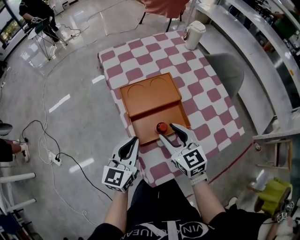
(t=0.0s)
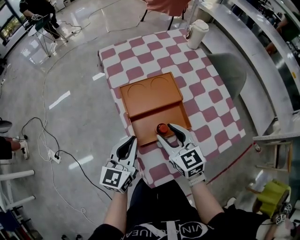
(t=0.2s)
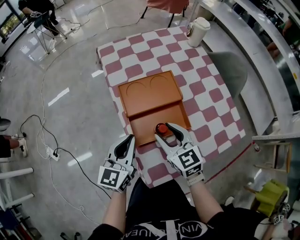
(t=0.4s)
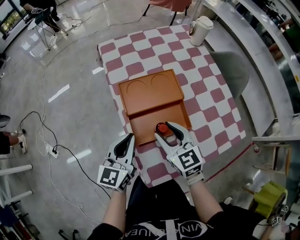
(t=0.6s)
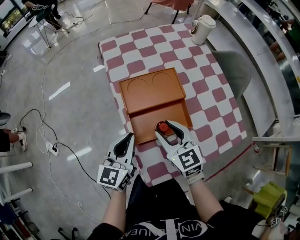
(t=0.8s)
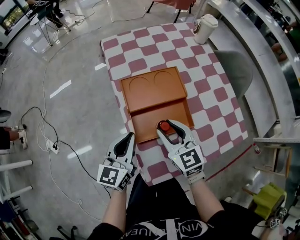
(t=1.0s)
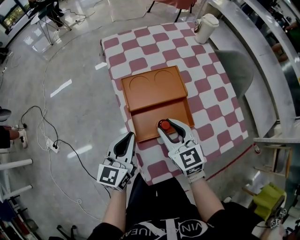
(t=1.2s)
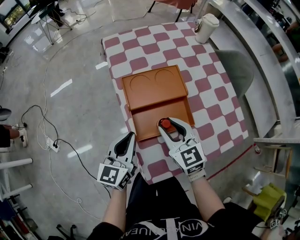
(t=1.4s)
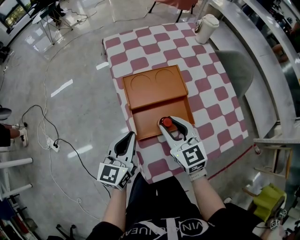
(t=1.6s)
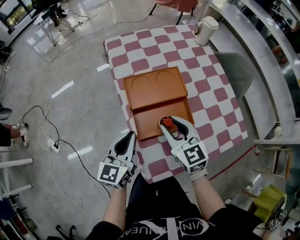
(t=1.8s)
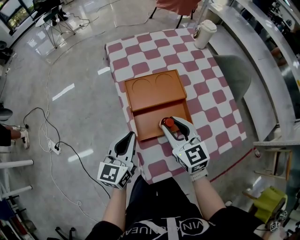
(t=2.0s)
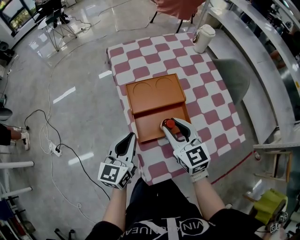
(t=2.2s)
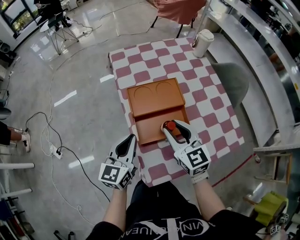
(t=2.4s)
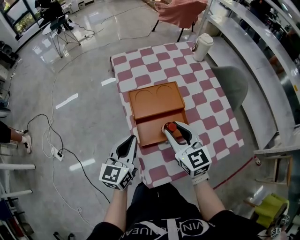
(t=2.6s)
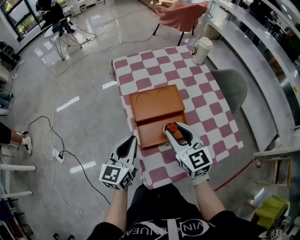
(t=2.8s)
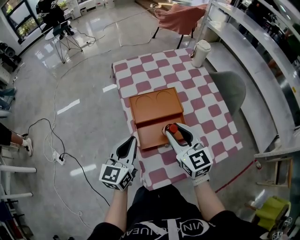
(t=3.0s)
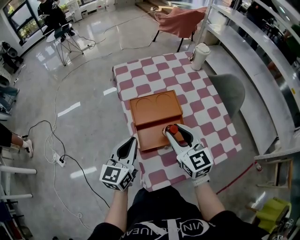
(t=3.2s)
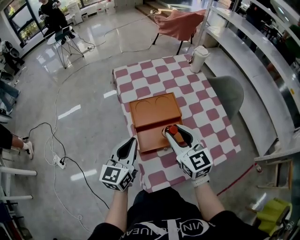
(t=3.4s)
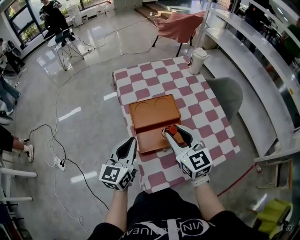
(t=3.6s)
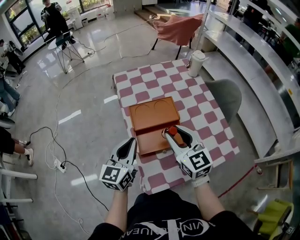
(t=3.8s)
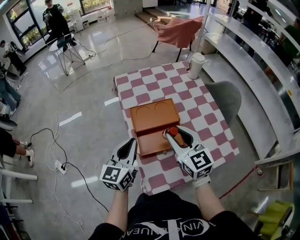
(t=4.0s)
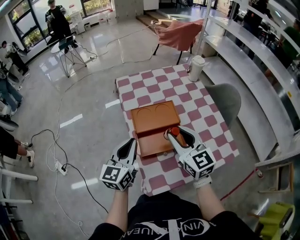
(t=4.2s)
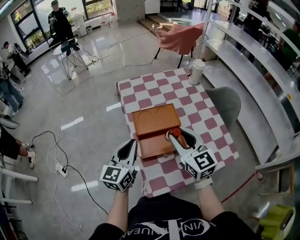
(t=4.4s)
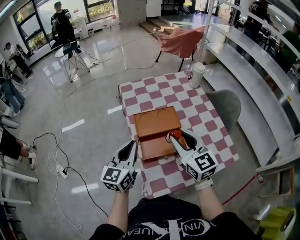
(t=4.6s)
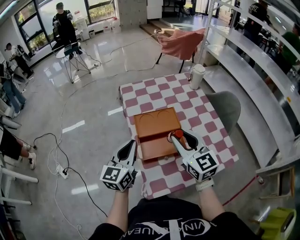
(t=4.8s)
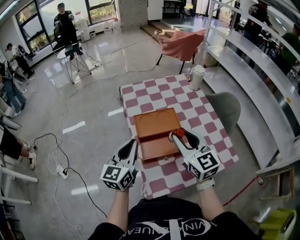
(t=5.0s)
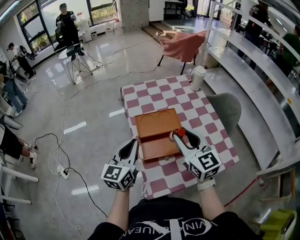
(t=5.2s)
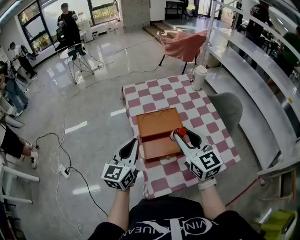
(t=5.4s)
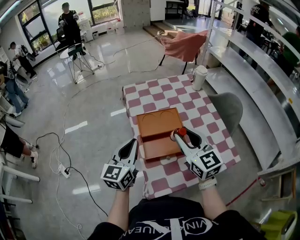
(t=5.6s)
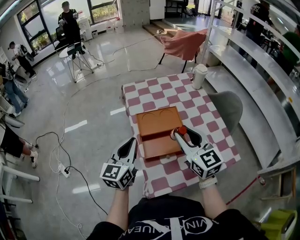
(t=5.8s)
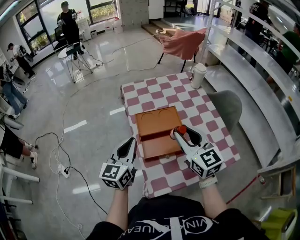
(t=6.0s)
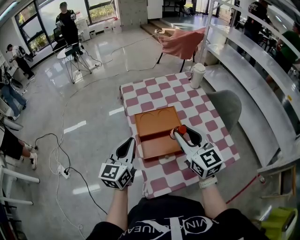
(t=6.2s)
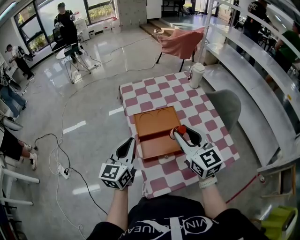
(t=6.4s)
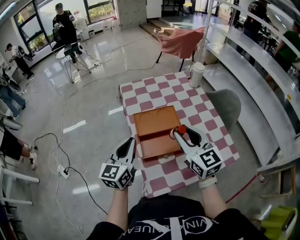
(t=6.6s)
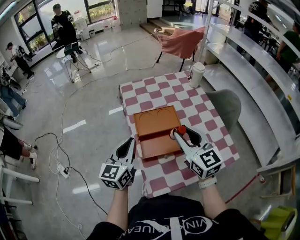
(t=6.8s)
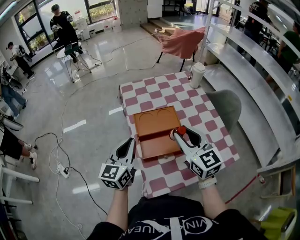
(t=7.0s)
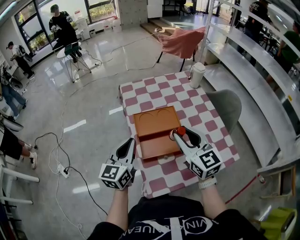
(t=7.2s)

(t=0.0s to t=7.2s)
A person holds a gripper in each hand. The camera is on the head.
t=0.0s - t=1.4s: The grippers make only small movements.
t=1.4s - t=2.8s: The right gripper heads upward, covering some 10 cm.
t=2.8s - t=4.4s: Both grippers travel together upward, some 5 cm.
t=4.4s - t=5.8s: There are only small adjustments of the grippers.
t=5.8s - t=7.2s: Neither gripper changes place.

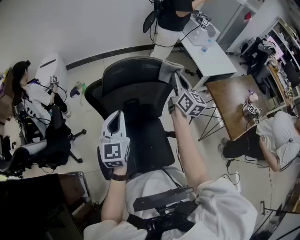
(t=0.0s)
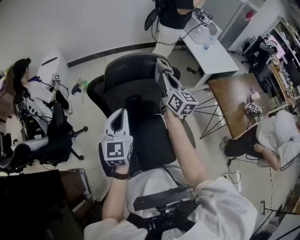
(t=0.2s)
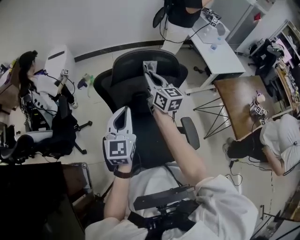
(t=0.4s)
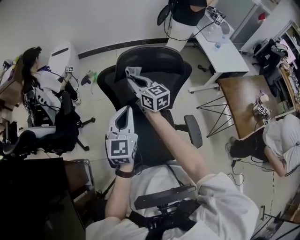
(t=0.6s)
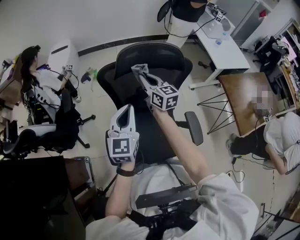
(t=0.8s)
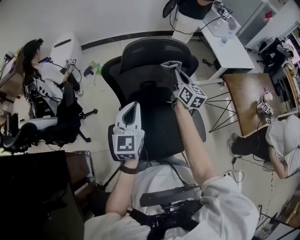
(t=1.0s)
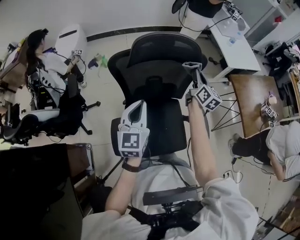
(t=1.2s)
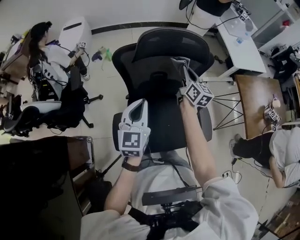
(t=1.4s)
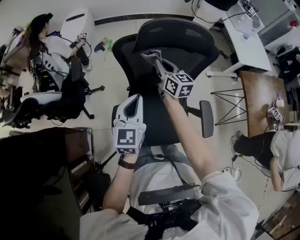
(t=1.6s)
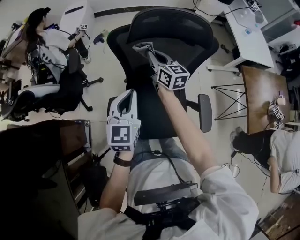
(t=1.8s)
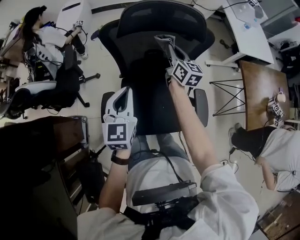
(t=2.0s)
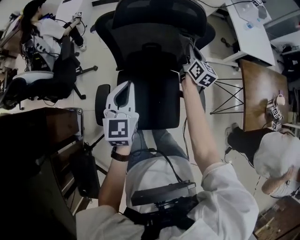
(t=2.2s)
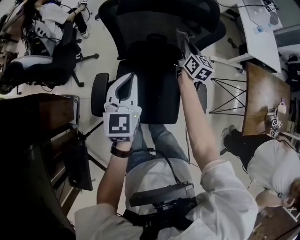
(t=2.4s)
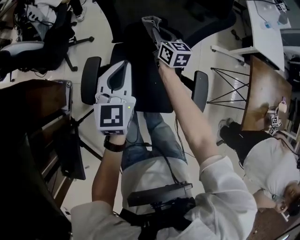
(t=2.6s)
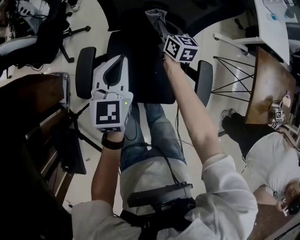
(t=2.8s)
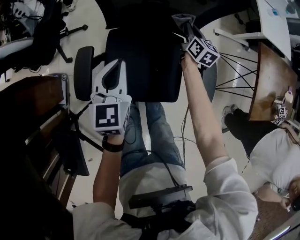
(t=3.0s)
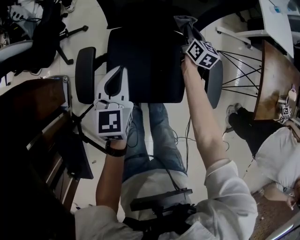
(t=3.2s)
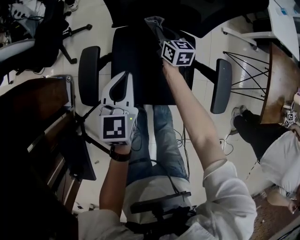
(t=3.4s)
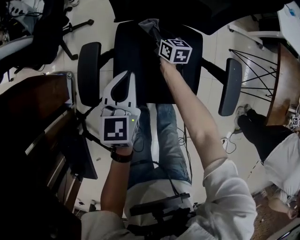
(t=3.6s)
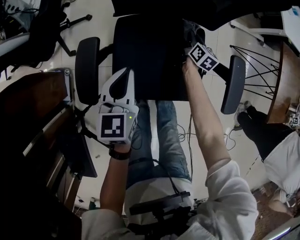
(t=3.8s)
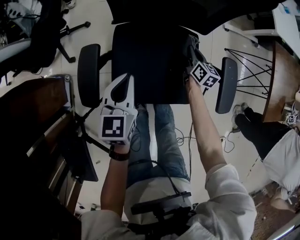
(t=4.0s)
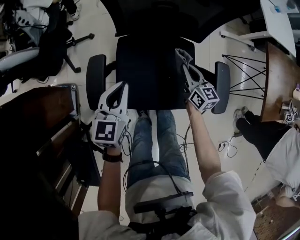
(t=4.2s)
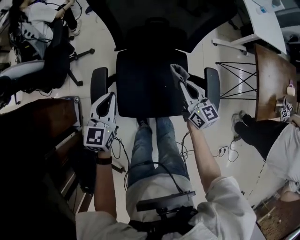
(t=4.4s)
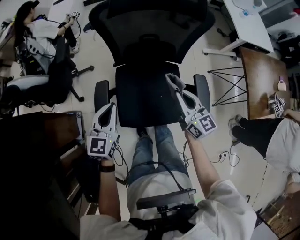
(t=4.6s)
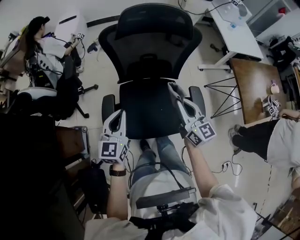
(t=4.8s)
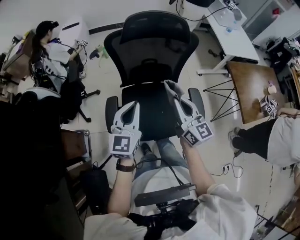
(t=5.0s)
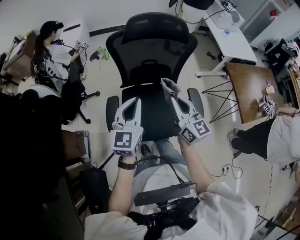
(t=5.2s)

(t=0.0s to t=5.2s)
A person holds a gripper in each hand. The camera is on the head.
t=0.0s - t=1.8s: The left gripper travels downward, backward and to the left by approximately 15 cm, while the right gripper swings left and right, some 30 cm each way, with 2 reversals, and changes its angle by approximately 30 degrees.
t=1.8s - t=3.4s: The grippers both shift downward by about 40 cm.
t=3.4s - t=5.2s: The left gripper travels upward by some 40 cm, and changes its angle by about 30 degrees; the right gripper heads upward and backward, covering roughly 70 cm, and swivels approximately 30 degrees.

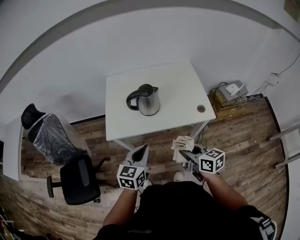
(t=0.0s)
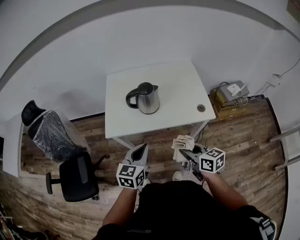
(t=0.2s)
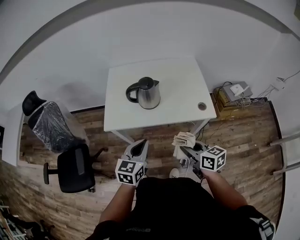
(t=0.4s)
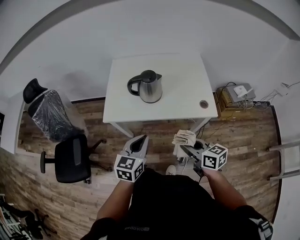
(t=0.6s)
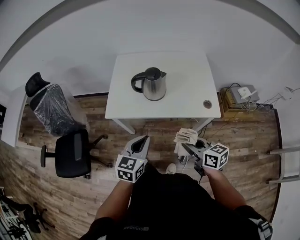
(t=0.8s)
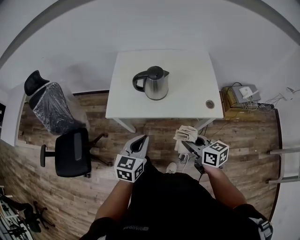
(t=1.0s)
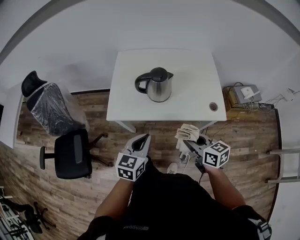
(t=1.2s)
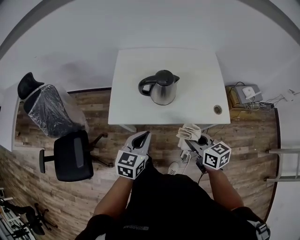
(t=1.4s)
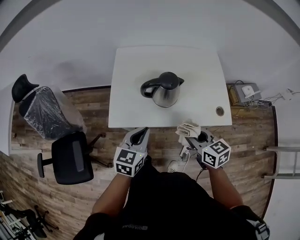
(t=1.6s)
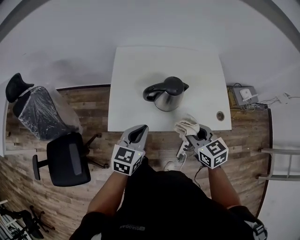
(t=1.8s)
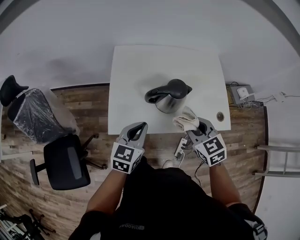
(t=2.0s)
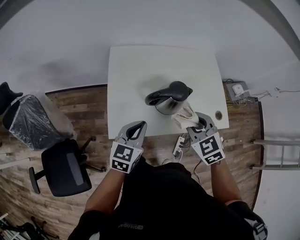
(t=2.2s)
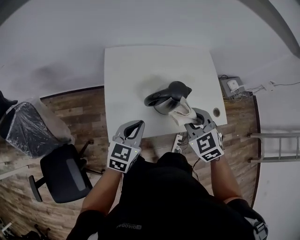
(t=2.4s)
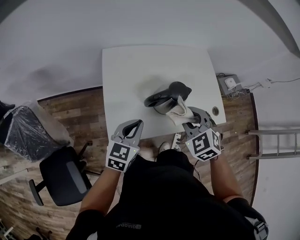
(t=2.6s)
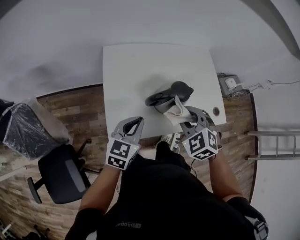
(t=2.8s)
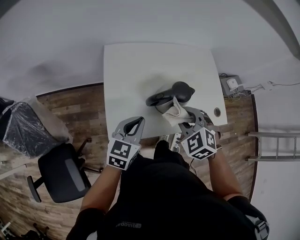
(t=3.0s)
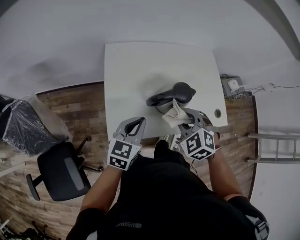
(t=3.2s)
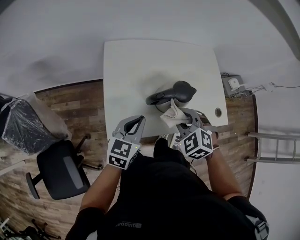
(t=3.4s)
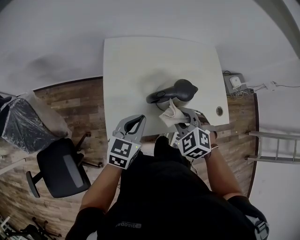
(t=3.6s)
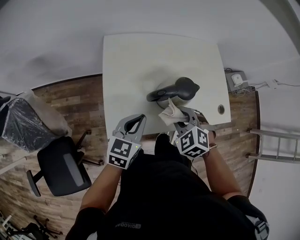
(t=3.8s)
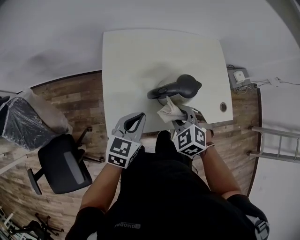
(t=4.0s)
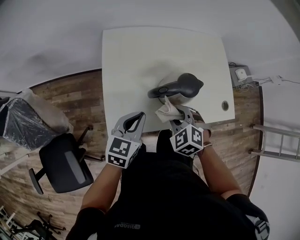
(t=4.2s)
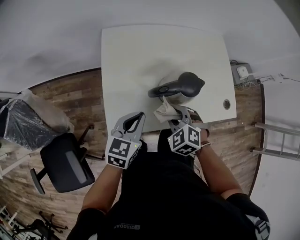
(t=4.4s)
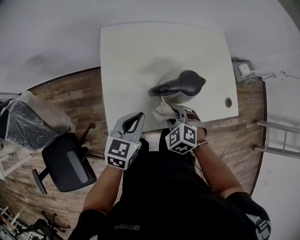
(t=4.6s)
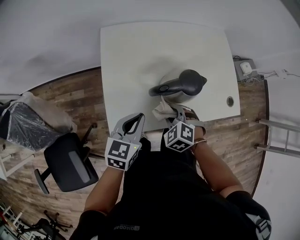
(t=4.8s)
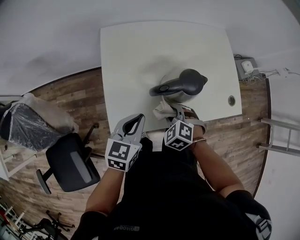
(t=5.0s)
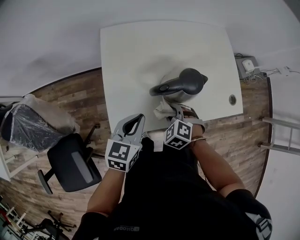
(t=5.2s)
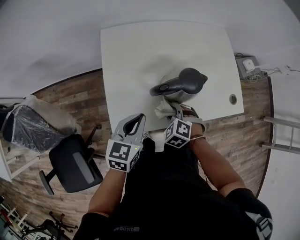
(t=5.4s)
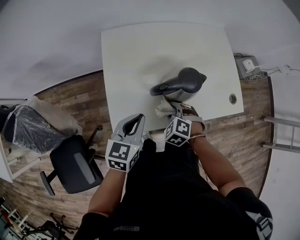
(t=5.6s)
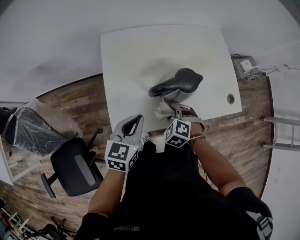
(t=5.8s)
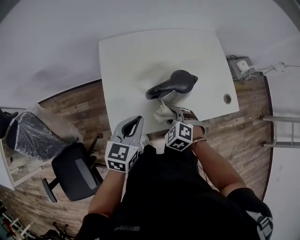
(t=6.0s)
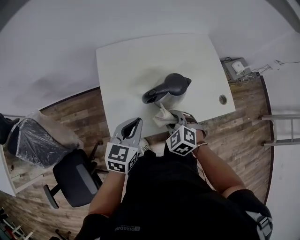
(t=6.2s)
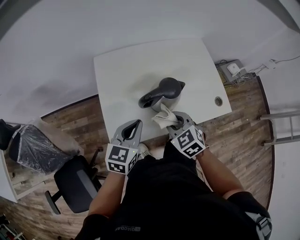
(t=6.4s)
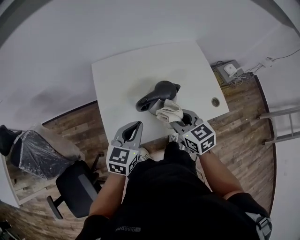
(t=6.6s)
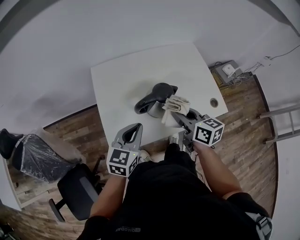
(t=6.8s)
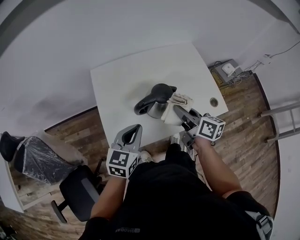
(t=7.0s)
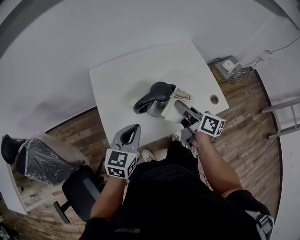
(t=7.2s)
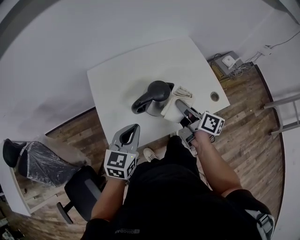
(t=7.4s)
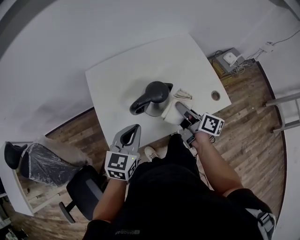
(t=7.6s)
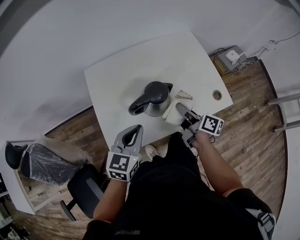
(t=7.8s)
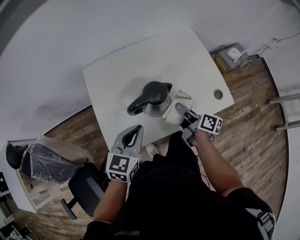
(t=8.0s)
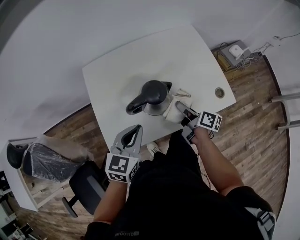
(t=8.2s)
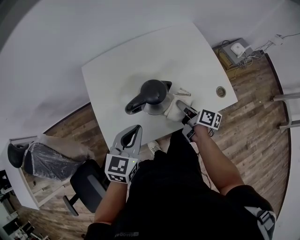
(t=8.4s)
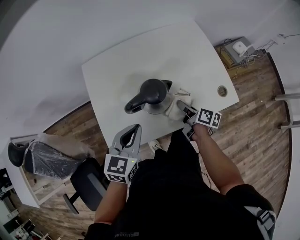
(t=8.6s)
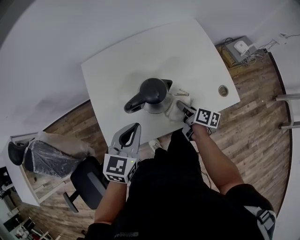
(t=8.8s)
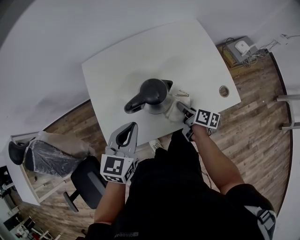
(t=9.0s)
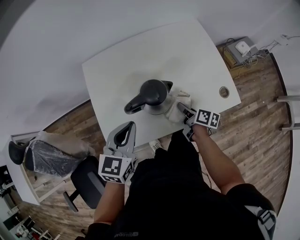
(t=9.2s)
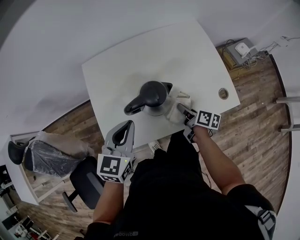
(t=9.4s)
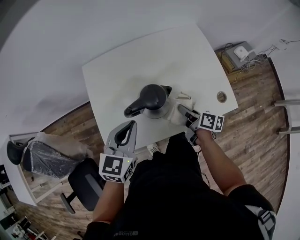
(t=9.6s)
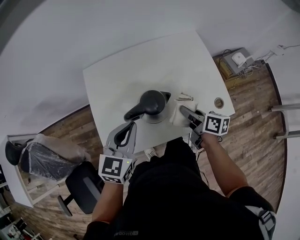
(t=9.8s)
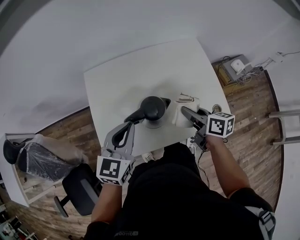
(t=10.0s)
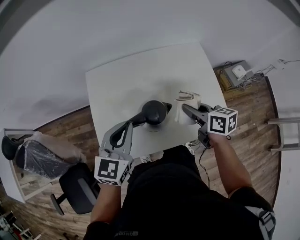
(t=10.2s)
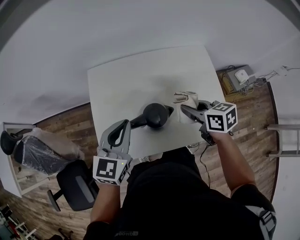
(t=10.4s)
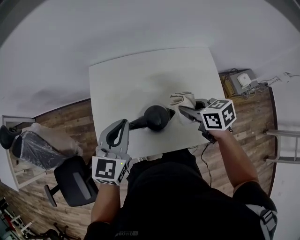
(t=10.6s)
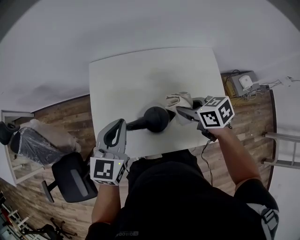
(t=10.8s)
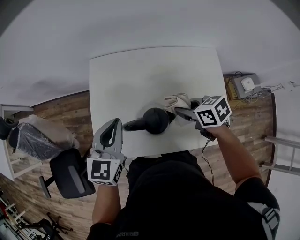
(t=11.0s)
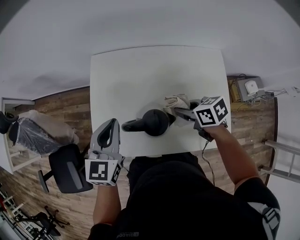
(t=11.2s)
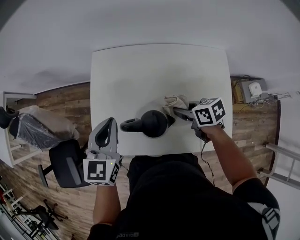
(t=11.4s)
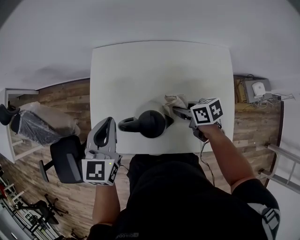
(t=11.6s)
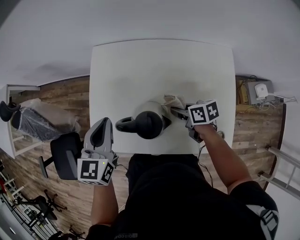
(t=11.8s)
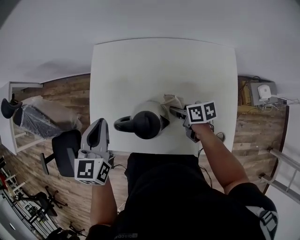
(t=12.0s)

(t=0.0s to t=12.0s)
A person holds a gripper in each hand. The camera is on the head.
t=0.0s - t=1.6s: Both grippers travel together forward, approximately 15 cm.
t=1.6s - t=3.0s: The left gripper shifts some 15 cm forward and to the left. The right gripper shifts approximately 20 cm to the left and forward, and twists approximately 50 degrees counterclockwise, seen from behind.
t=3.0s - t=4.4s: The right gripper goes some 10 cm downward.
t=6.0s - t=7.6s: The right gripper goes roughly 20 cm to the right, upward and forward, and twists about 100 degrees clockwise, seen from behind; the left gripper moves to the right, approximately 5 cm.
t=7.6s - t=9.0s: The right gripper goes approximately 15 cm downward.
t=9.0s - t=10.4s: The right gripper is displaced upward and forward by approximately 20 cm, and twists roughly 40 degrees counterclockwise, seen from behind. The left gripper shifts roughly 10 cm forward and upward.
t=10.4s - t=12.0s: The right gripper is displaced downward by approximately 20 cm, and swivels roughly 30 degrees. The left gripper moves roughly 5 cm, and swivels approximately 30 degrees.
